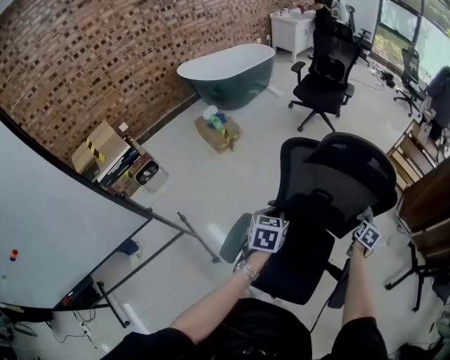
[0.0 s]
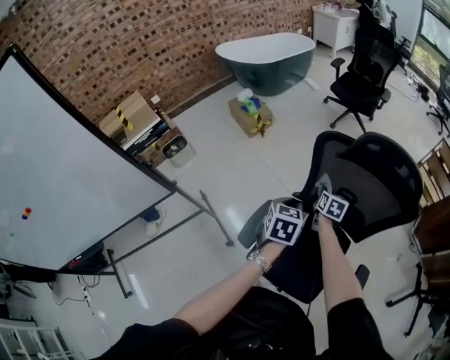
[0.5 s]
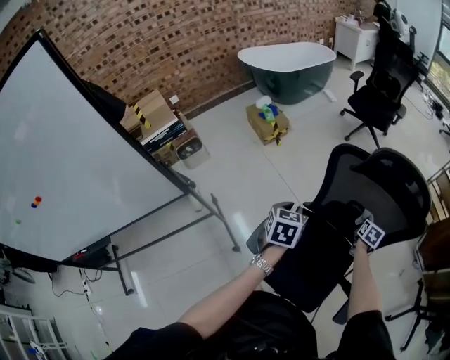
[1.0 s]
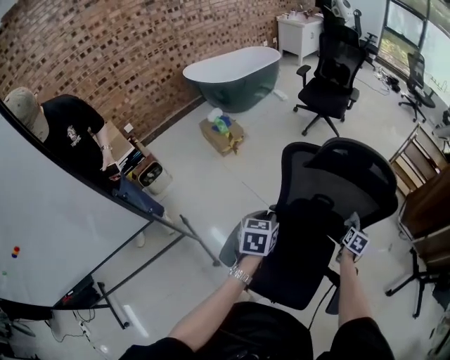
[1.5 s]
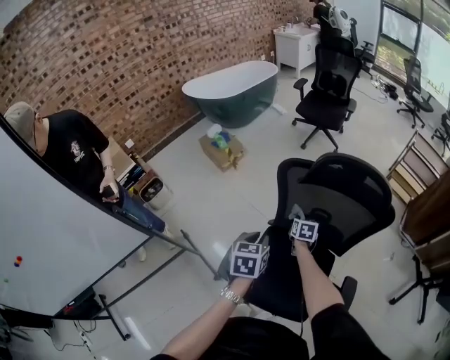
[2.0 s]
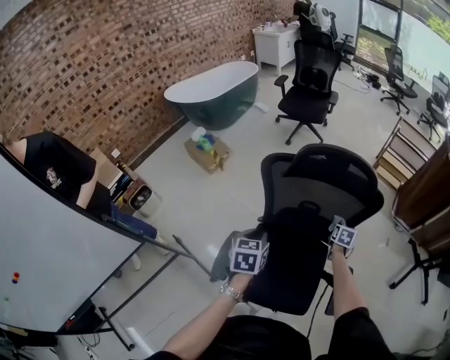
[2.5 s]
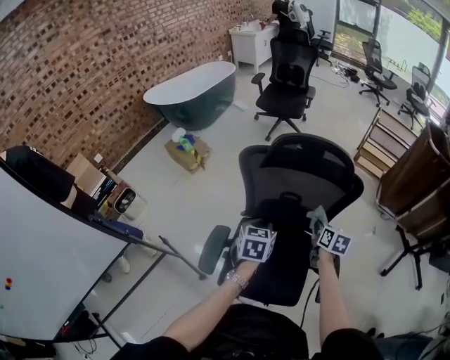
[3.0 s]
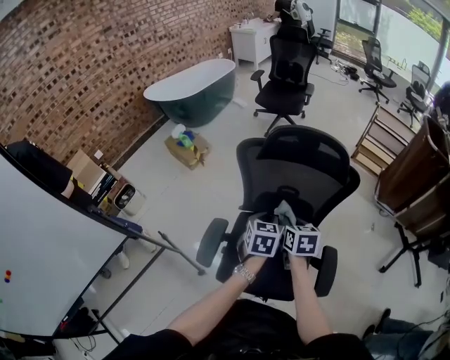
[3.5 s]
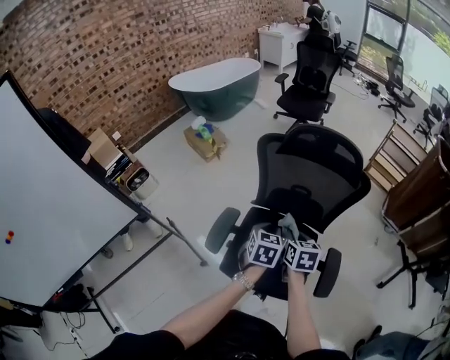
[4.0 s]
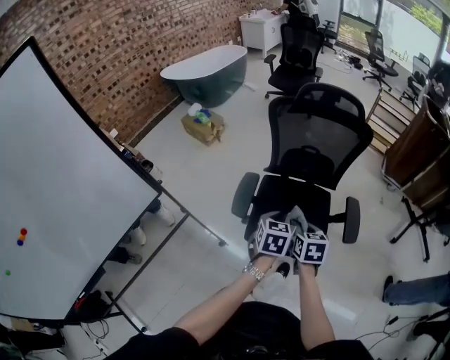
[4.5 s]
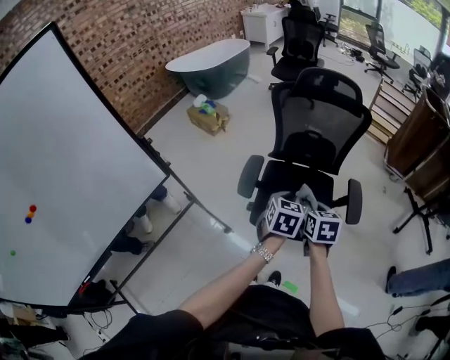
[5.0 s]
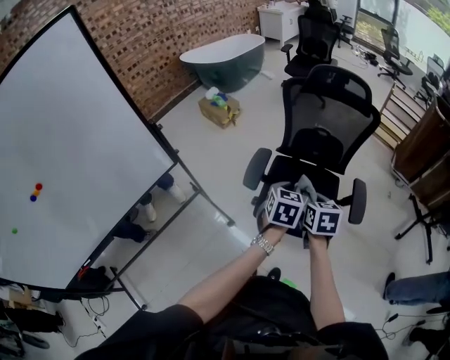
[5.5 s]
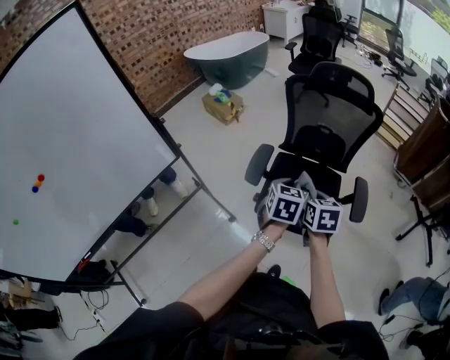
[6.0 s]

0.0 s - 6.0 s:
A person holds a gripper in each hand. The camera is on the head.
0.0 s - 2.0 s: The right gripper goes left and right, approximately 35 cm each way, reversing 2 times, and swivels approximately 30 degrees.
2.0 s - 4.0 s: The right gripper travels backward and upward by some 25 cm, and reaches approximately 25 cm to the right, then returns. The left gripper goes some 15 cm to the right and backward.
4.0 s - 6.0 s: The two grippers go about 15 cm backward.

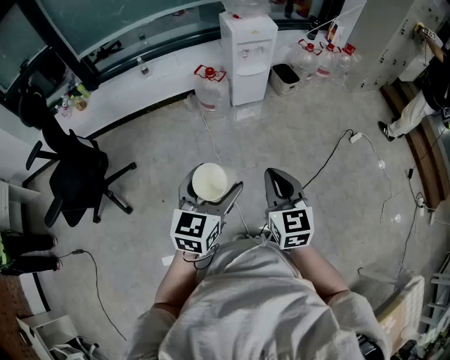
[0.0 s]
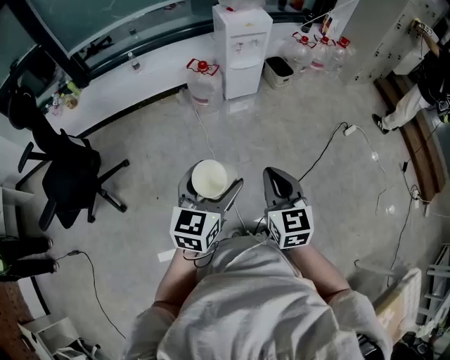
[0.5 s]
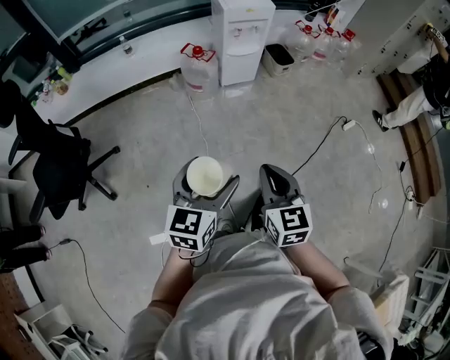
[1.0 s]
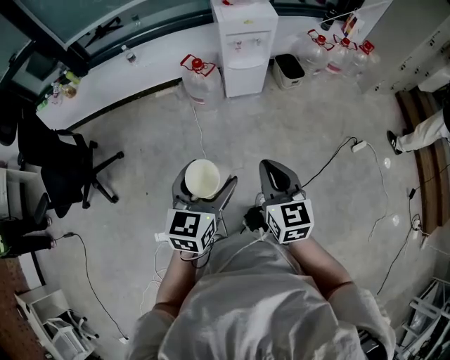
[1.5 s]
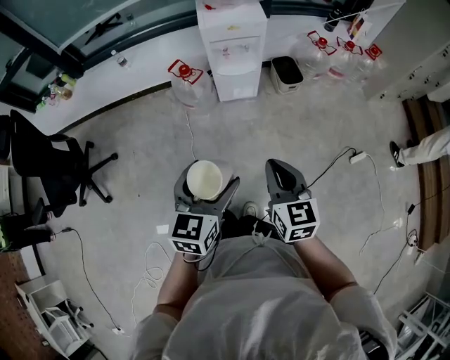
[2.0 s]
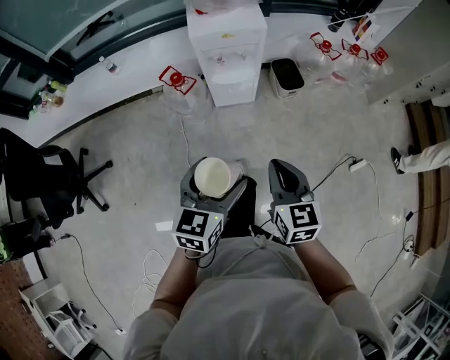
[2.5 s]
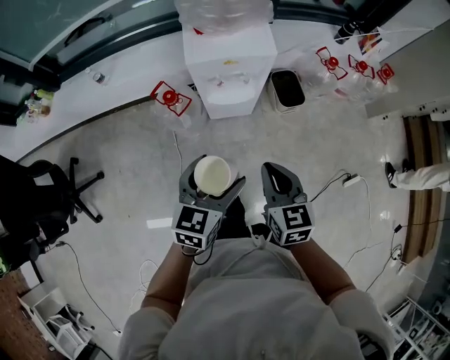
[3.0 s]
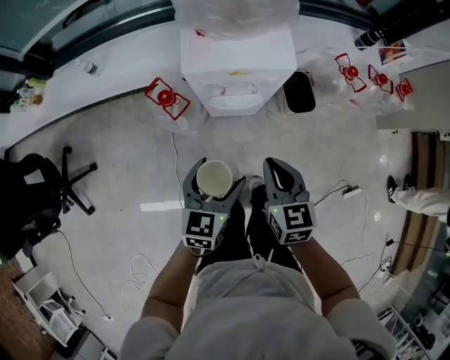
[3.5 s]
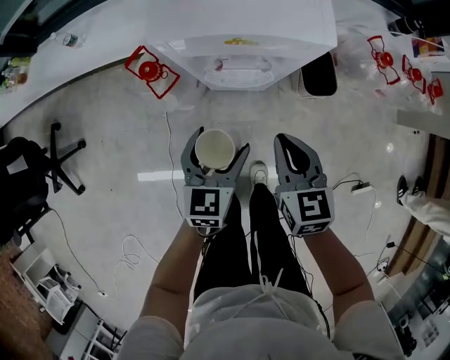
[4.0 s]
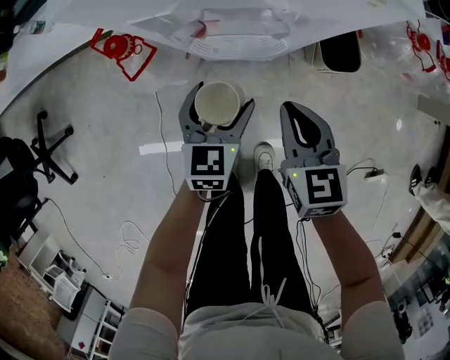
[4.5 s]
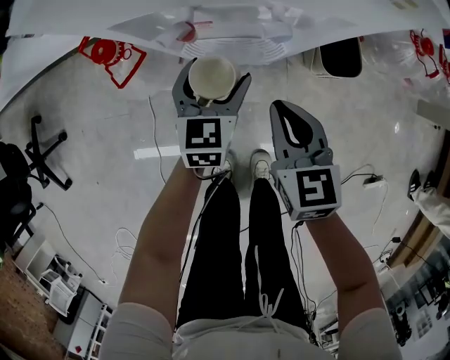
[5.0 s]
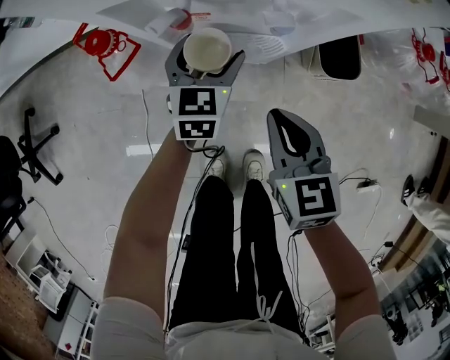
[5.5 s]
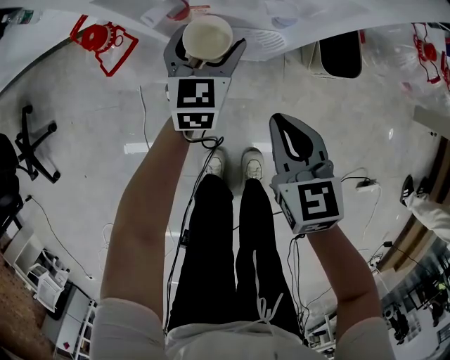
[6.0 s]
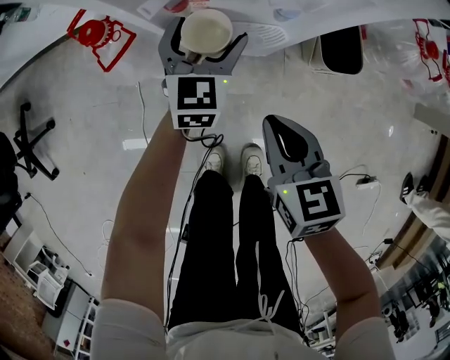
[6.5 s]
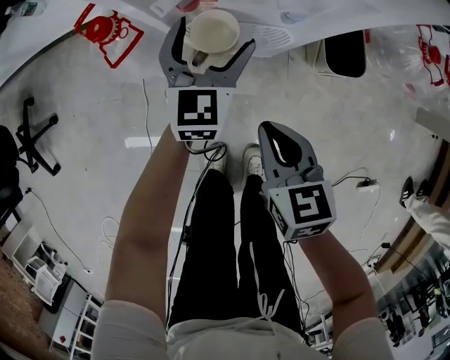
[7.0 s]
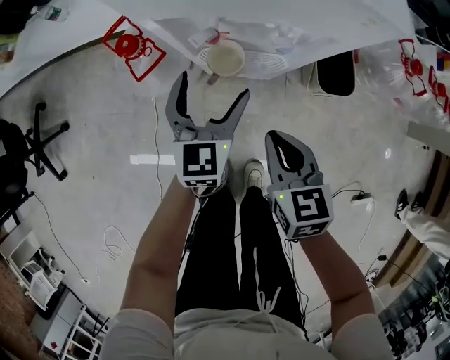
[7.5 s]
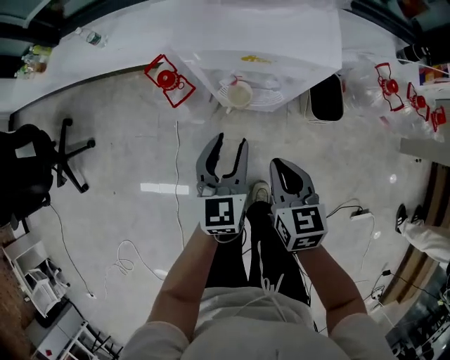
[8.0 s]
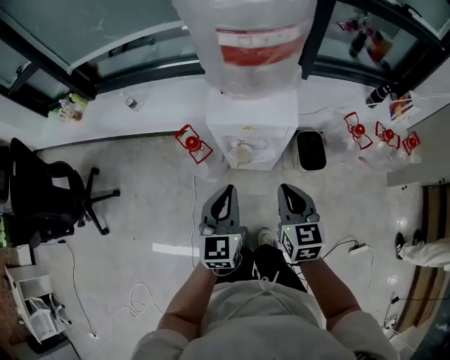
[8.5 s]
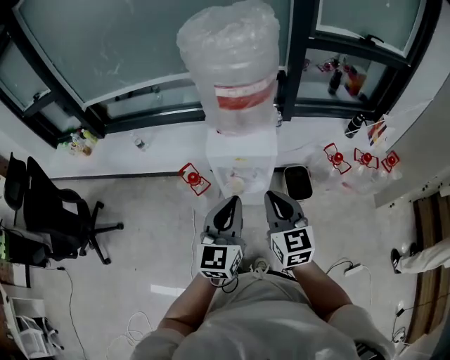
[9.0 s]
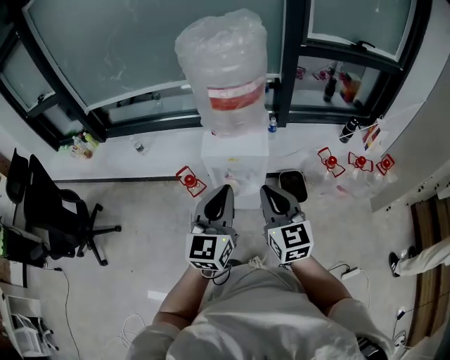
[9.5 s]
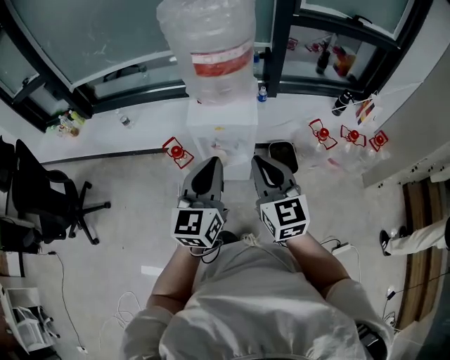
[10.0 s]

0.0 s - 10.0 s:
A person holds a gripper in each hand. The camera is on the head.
0.0 s - 2.0 s: Both grippers travel together forward and to the right, some 35 cm.
2.0 s - 4.0 s: Both grippers are carried forward, approximately 40 cm. The two grippers go about 25 cm downward.
4.0 s - 6.0 s: The left gripper goes approximately 25 cm forward and downward; the right gripper goes roughly 15 cm downward.
6.0 s - 8.0 s: The right gripper travels upward by roughly 15 cm, while the left gripper goes roughly 25 cm upward and backward, and closes its fingers.
8.0 s - 10.0 s: Both grippers travel together upward, about 35 cm. The left gripper changes its angle by some 20 degrees, and closes up. The right gripper changes its angle by about 30 degrees.

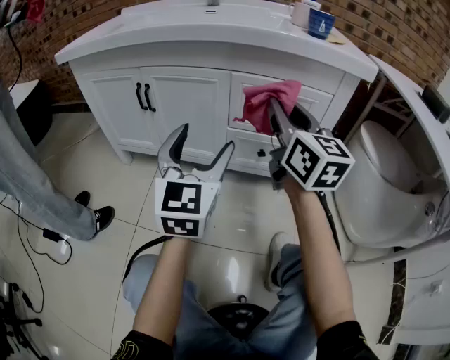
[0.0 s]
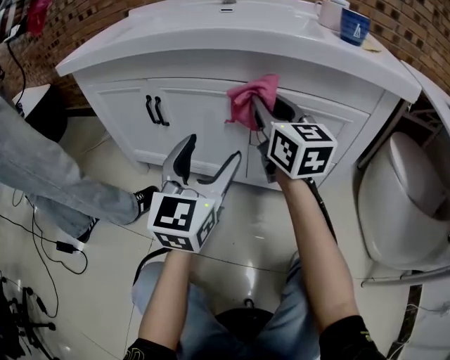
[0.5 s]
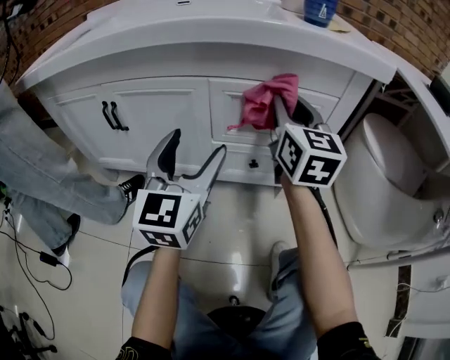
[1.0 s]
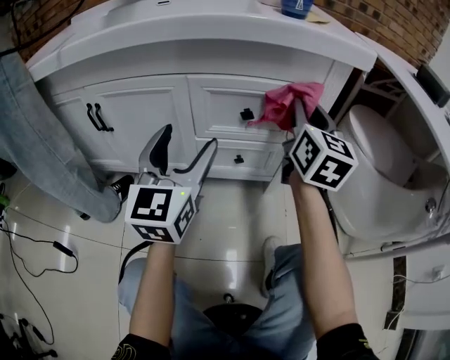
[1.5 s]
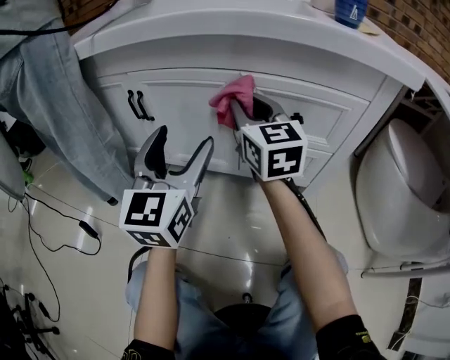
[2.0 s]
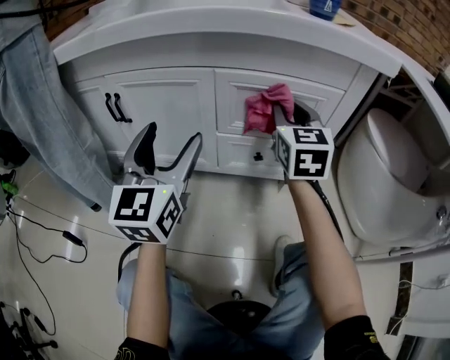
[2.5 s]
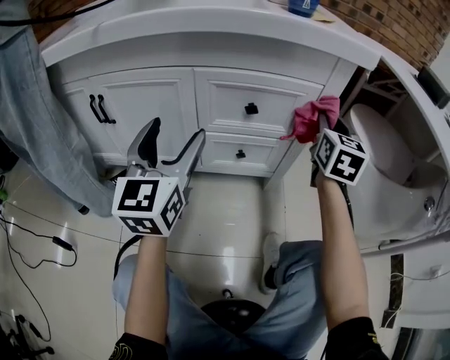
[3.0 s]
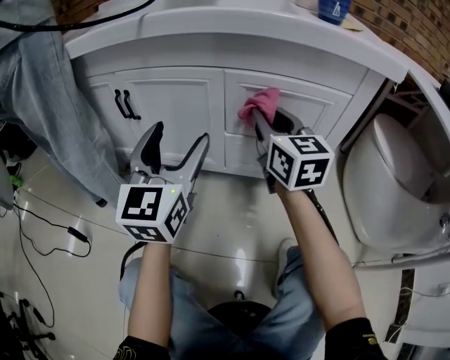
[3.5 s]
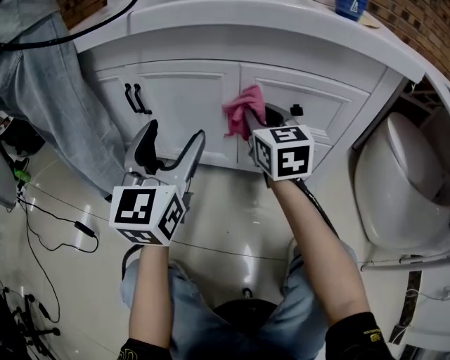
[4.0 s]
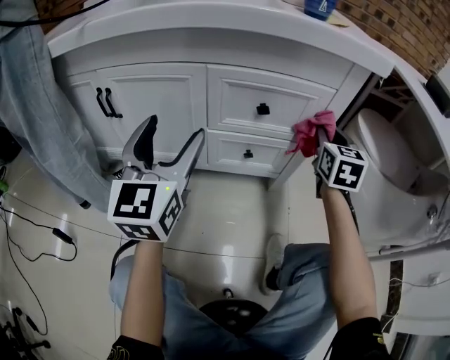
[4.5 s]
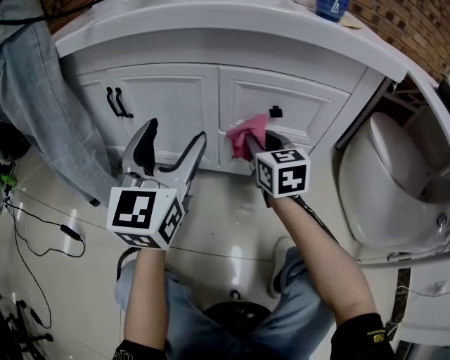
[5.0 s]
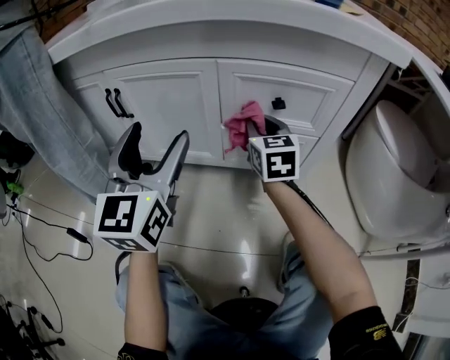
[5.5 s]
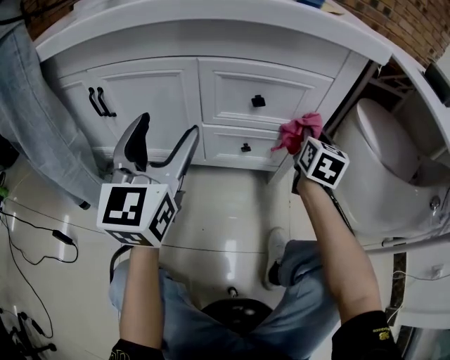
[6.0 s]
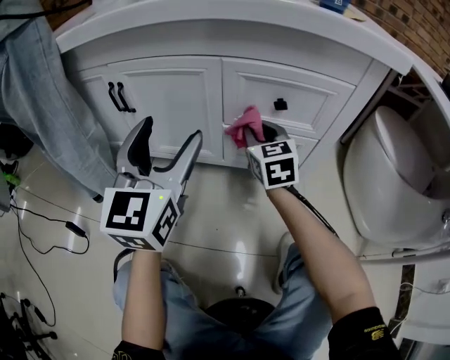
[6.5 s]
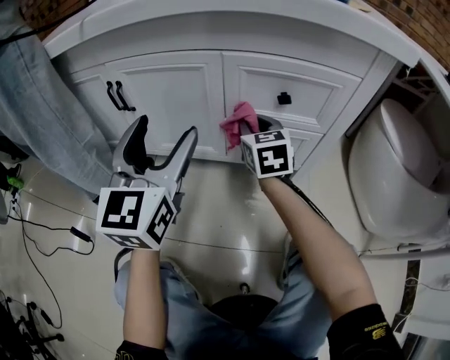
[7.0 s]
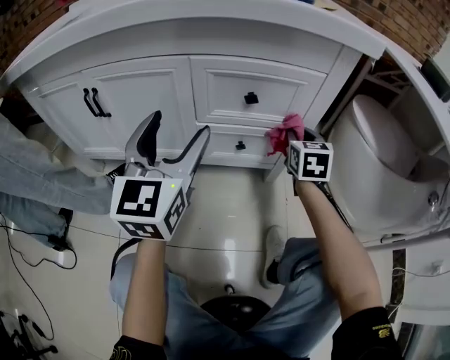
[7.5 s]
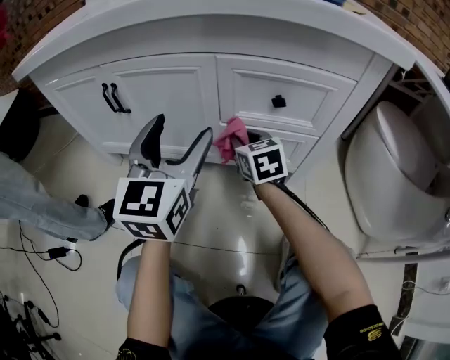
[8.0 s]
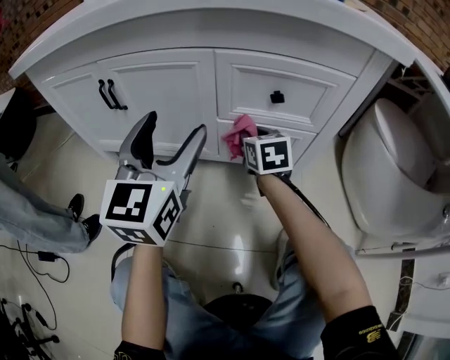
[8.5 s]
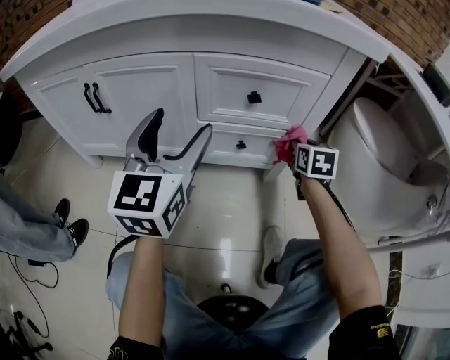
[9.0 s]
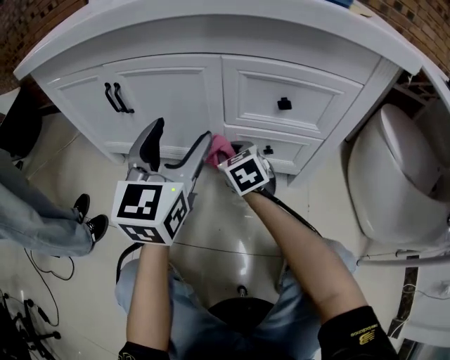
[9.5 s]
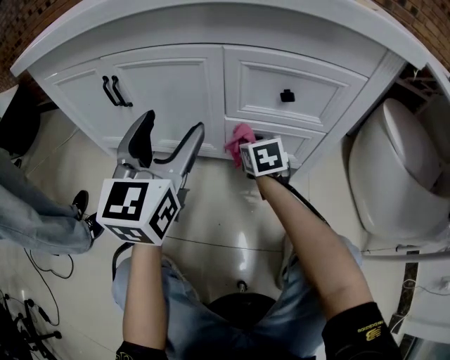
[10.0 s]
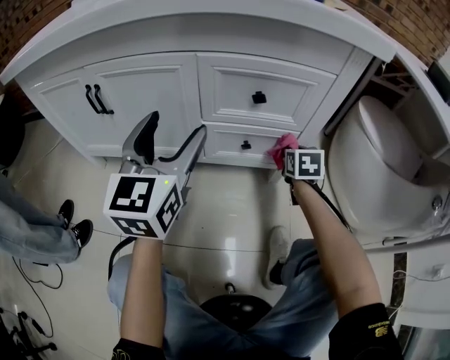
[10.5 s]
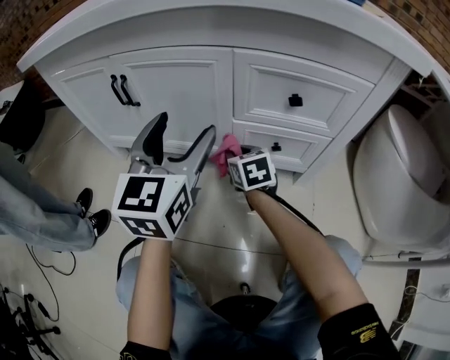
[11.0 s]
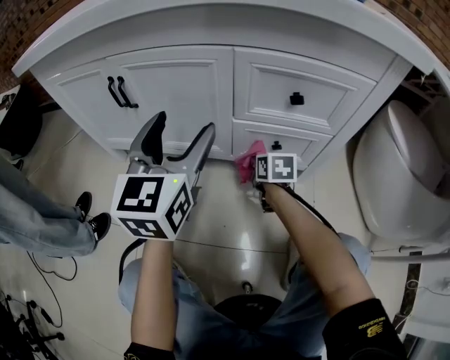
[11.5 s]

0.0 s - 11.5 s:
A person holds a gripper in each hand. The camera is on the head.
0.0 s - 2.0 s: The right gripper goes left and right, about 25 cm each way, reversing 2 times, while the left gripper travels forward by some 10 cm.
2.0 s - 4.0 s: The right gripper heads downward, covering roughly 5 cm, and goes to the right and returns, about 30 cm each way. The left gripper goes to the right and returns, approximately 5 cm each way.
4.0 s - 6.0 s: The right gripper swings left and right, roughly 30 cm each way, with 2 reversals, and changes its angle by roughly 40 degrees; the left gripper swings left and right, approximately 5 cm each way, with 2 reversals.
6.0 s - 7.5 s: The right gripper travels to the left and back again, some 25 cm each way.
7.5 s - 9.5 s: The right gripper swings left and right, roughly 30 cm each way, with 2 reversals, and swivels about 40 degrees. The left gripper swings left and right, roughly 5 cm each way, with 2 reversals.
9.5 s - 11.5 s: The right gripper moves left and right over some 30 cm, changing direction 2 times, and changes its angle by roughly 30 degrees.
